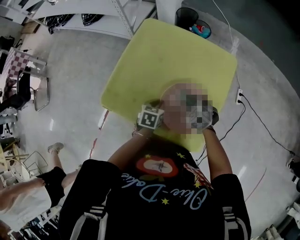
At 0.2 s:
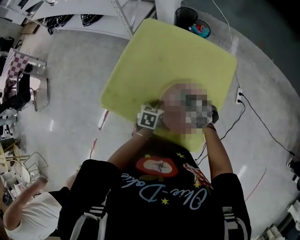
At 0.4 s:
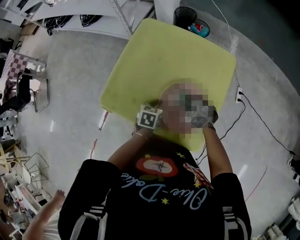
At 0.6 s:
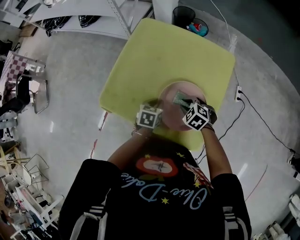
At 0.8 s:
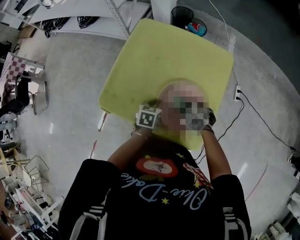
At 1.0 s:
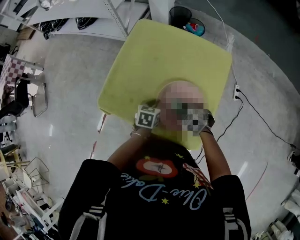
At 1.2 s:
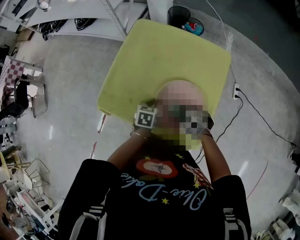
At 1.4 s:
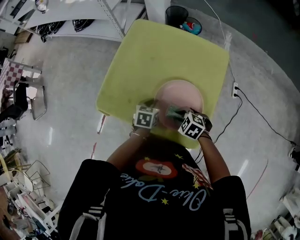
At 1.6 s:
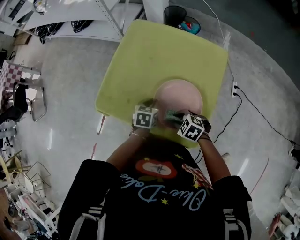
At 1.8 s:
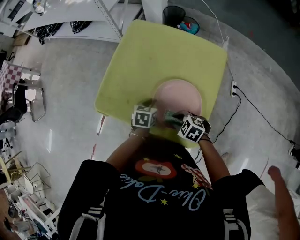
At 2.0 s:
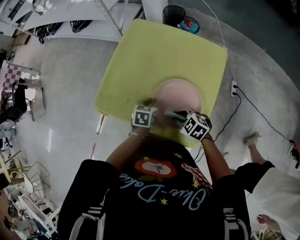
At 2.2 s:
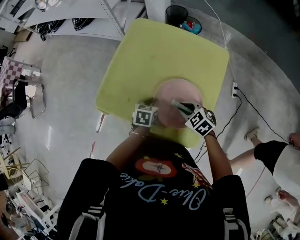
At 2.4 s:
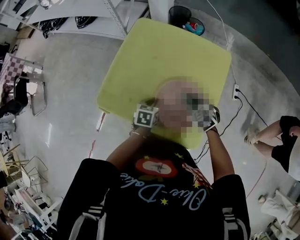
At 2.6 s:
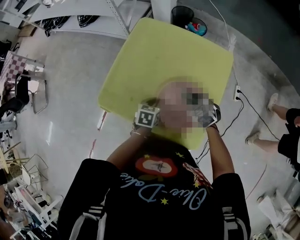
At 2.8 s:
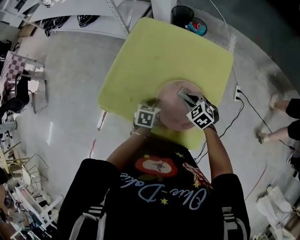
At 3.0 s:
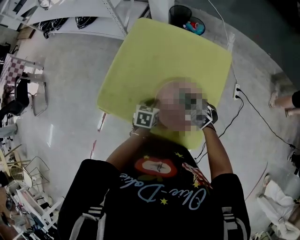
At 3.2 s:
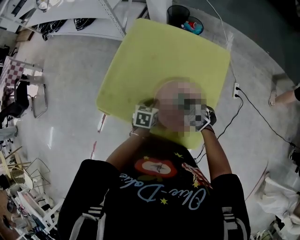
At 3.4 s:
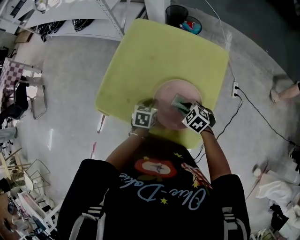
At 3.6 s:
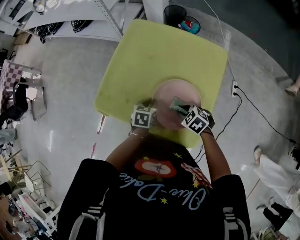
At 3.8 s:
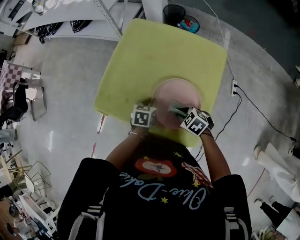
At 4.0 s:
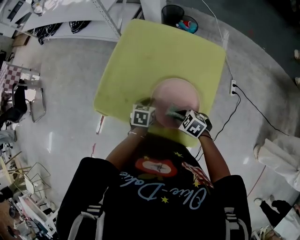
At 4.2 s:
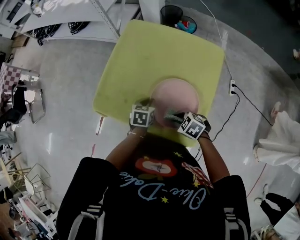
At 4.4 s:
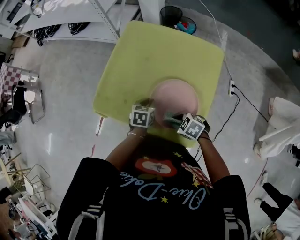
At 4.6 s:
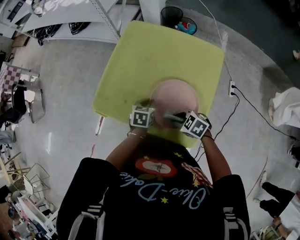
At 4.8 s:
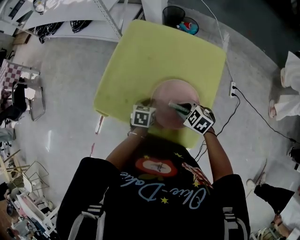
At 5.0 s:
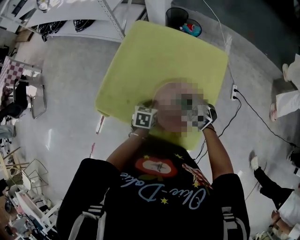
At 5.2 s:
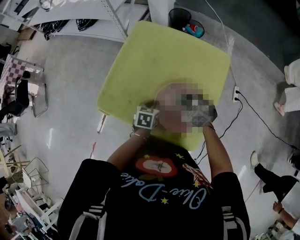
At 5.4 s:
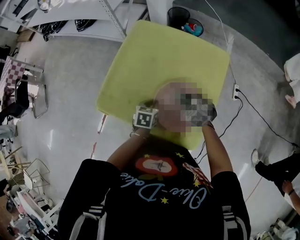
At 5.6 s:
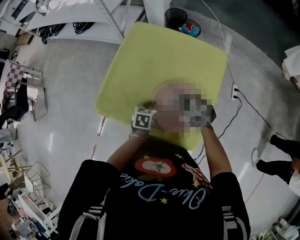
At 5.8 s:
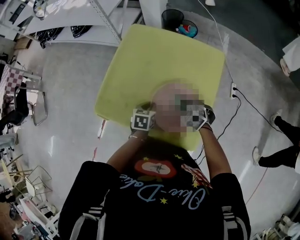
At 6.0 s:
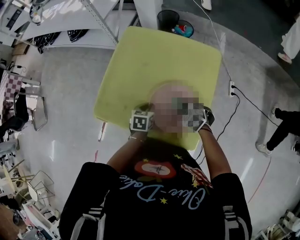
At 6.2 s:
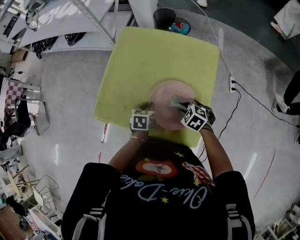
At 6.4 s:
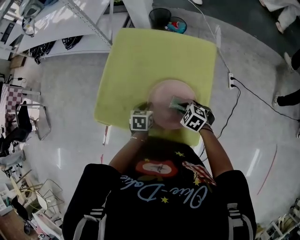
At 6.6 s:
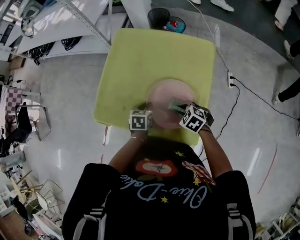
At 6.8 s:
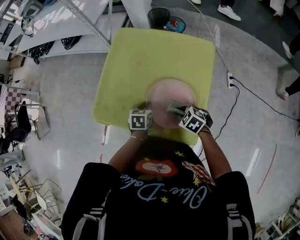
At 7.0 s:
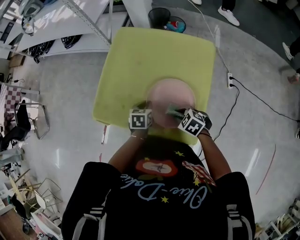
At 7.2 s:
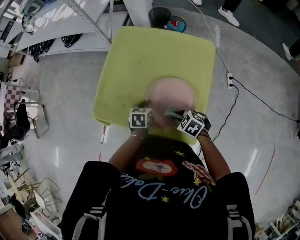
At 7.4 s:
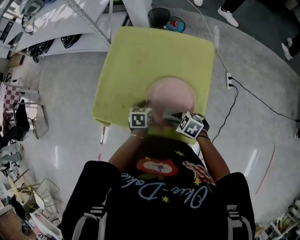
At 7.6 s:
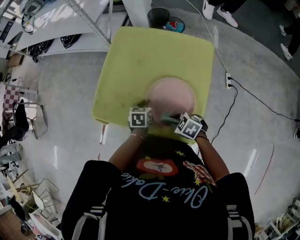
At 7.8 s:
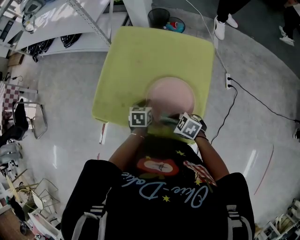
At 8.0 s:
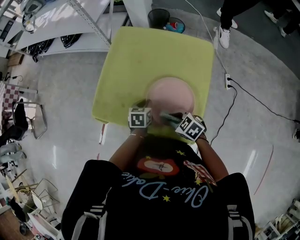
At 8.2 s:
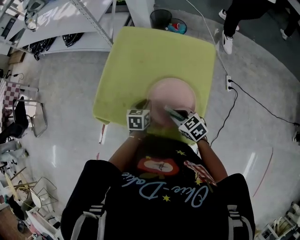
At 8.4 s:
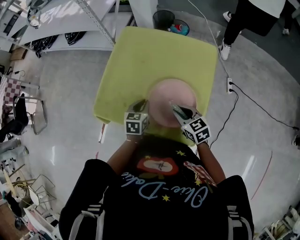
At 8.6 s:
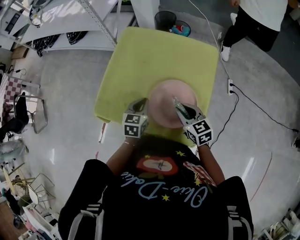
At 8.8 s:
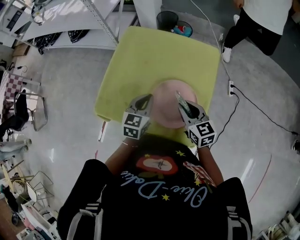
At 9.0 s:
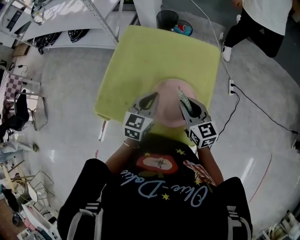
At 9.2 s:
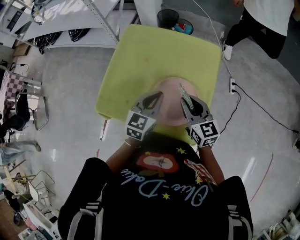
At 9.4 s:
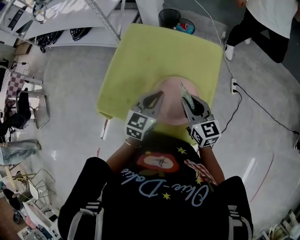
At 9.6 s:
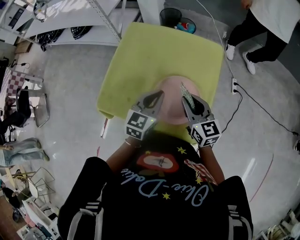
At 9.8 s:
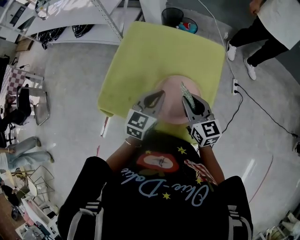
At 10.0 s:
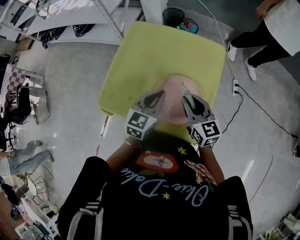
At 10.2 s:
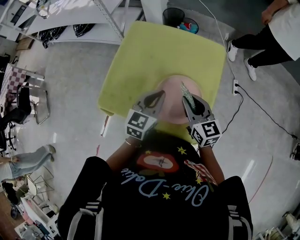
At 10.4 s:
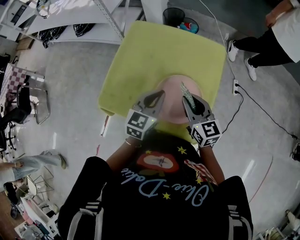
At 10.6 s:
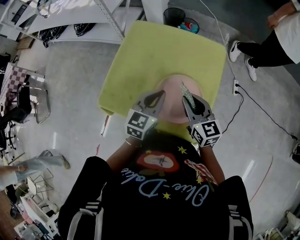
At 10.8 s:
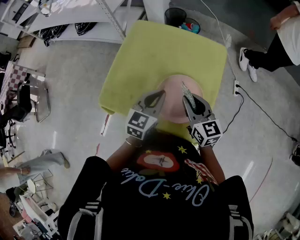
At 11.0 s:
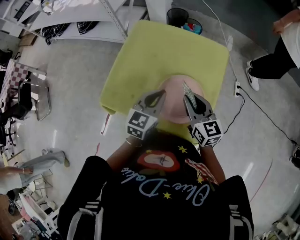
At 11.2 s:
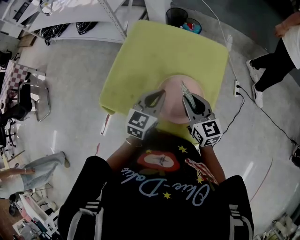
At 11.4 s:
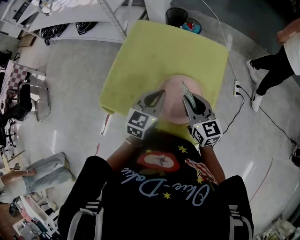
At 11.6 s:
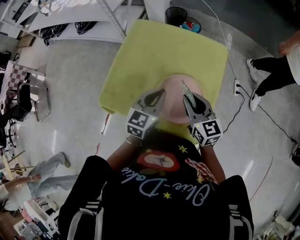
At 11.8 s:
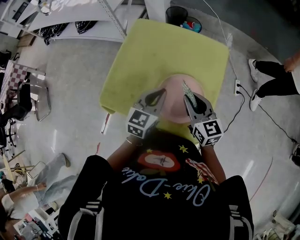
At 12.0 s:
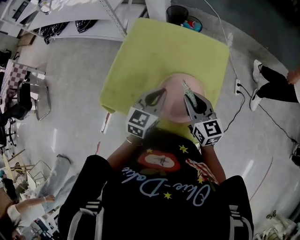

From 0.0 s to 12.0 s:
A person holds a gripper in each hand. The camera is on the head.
From 0.0 s to 1.6 s: The right gripper is displaced backward by about 10 cm, and turns by some 20 degrees.
From 1.6 s to 3.0 s: The right gripper moves forward and to the right, approximately 10 cm.
From 3.0 s to 4.4 s: The right gripper moves backward and to the left, approximately 10 cm, and rotates roughly 20 degrees.
From 4.4 s to 6.0 s: The right gripper goes about 10 cm forward and to the right.
From 6.0 s to 7.6 s: The right gripper heads backward and to the left, covering roughly 10 cm.
From 7.6 s to 9.0 s: Both grippers travel together upward, about 15 cm. The left gripper rotates roughly 30 degrees. The right gripper angles its fingers upward, by roughly 40 degrees.
From 9.0 s to 10.4 s: There are only small adjustments of the grippers.
From 10.4 s to 12.0 s: Both grippers stay put.

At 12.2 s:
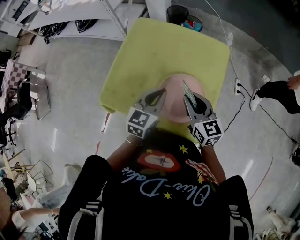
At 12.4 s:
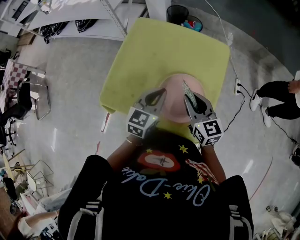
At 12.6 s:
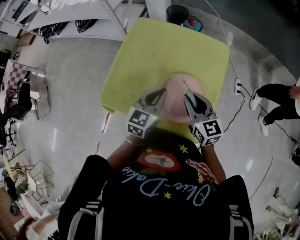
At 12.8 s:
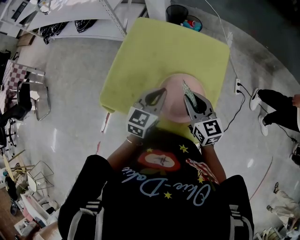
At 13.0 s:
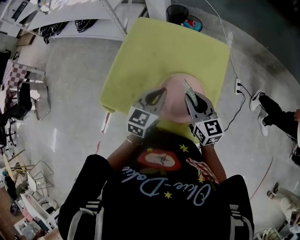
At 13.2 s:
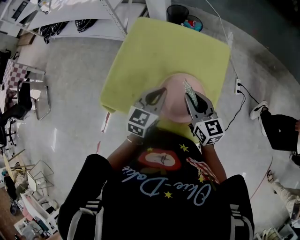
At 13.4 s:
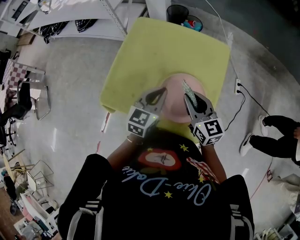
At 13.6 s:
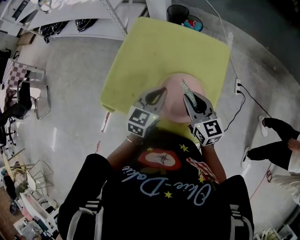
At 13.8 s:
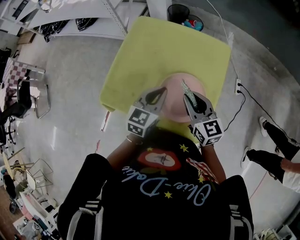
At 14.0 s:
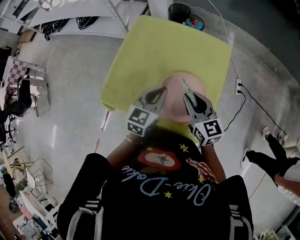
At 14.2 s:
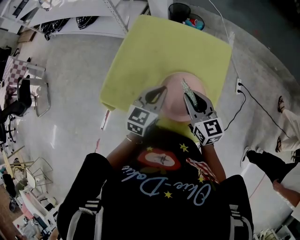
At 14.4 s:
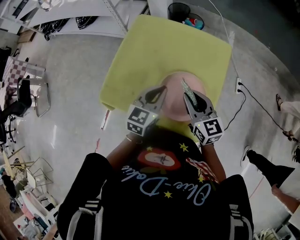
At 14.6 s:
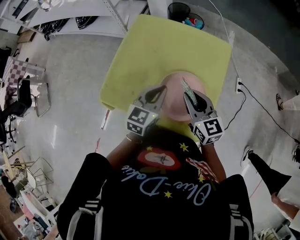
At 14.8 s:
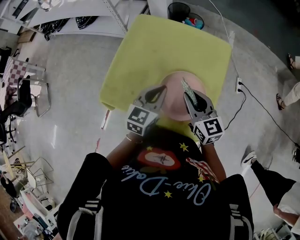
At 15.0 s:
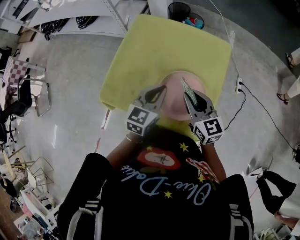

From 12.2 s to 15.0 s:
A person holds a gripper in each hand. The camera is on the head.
From 12.2 s to 15.0 s: Both grippers stay put.

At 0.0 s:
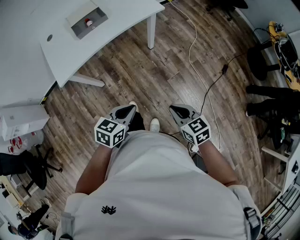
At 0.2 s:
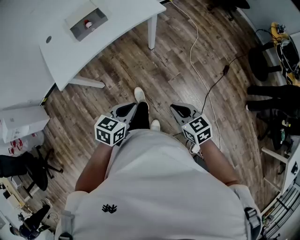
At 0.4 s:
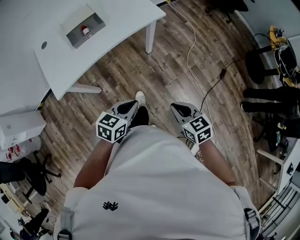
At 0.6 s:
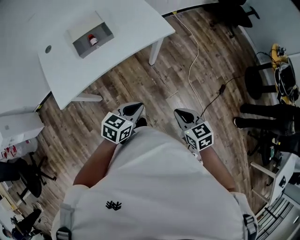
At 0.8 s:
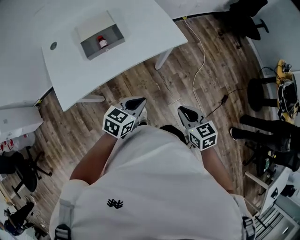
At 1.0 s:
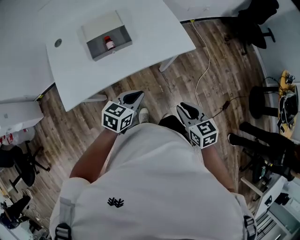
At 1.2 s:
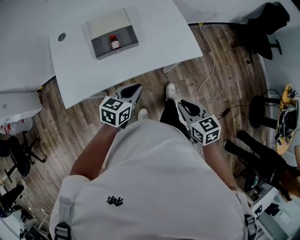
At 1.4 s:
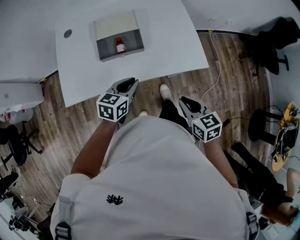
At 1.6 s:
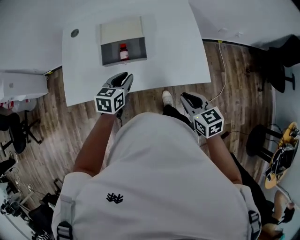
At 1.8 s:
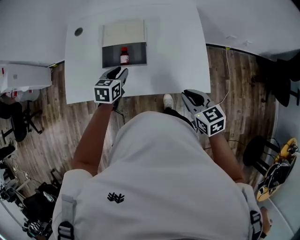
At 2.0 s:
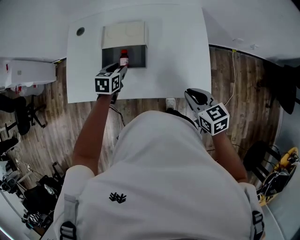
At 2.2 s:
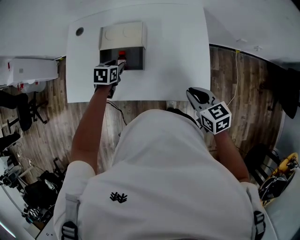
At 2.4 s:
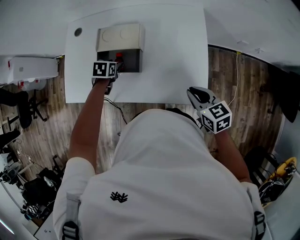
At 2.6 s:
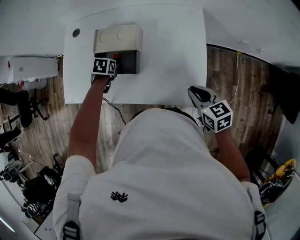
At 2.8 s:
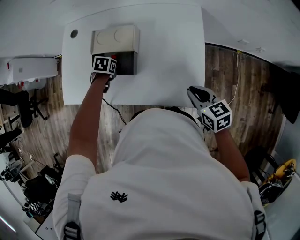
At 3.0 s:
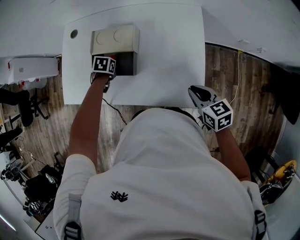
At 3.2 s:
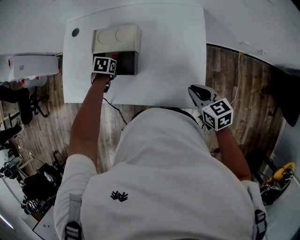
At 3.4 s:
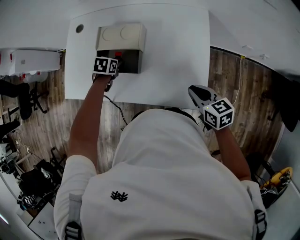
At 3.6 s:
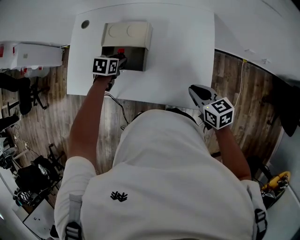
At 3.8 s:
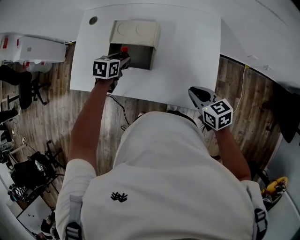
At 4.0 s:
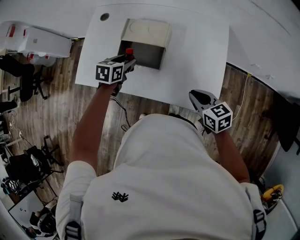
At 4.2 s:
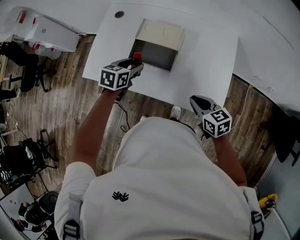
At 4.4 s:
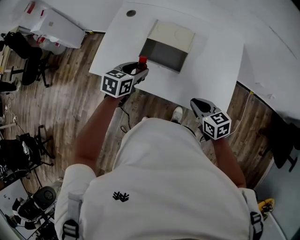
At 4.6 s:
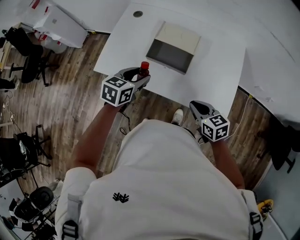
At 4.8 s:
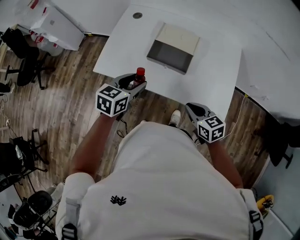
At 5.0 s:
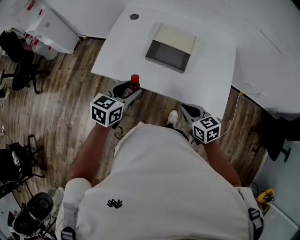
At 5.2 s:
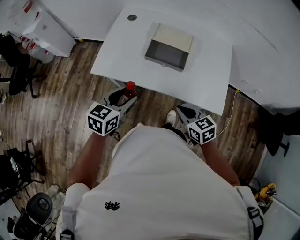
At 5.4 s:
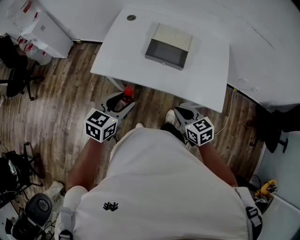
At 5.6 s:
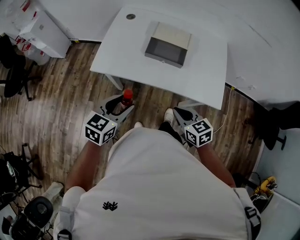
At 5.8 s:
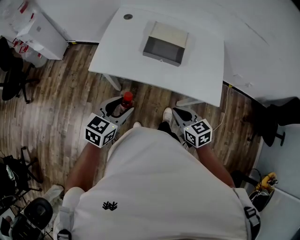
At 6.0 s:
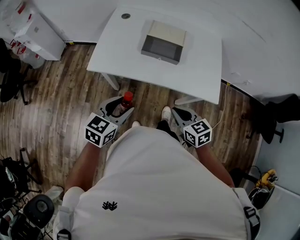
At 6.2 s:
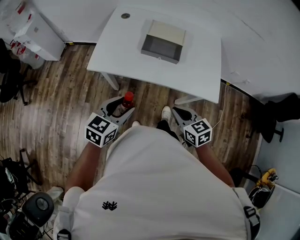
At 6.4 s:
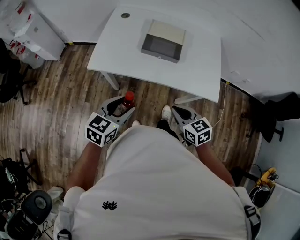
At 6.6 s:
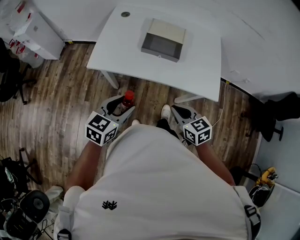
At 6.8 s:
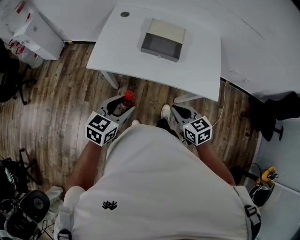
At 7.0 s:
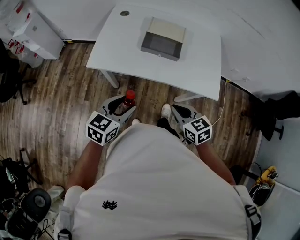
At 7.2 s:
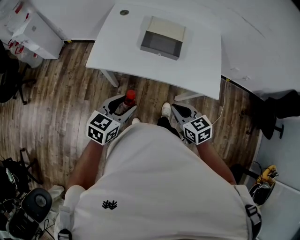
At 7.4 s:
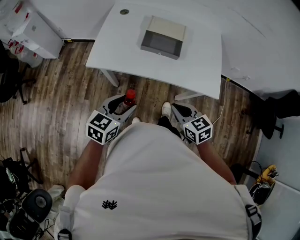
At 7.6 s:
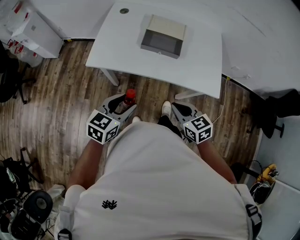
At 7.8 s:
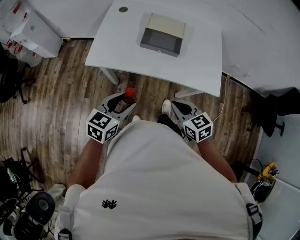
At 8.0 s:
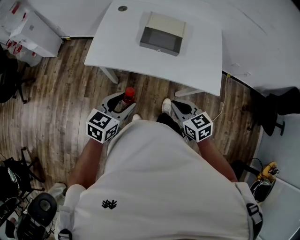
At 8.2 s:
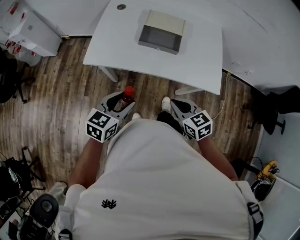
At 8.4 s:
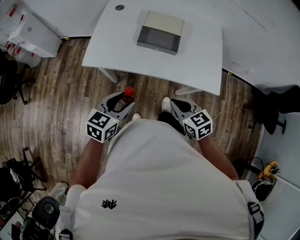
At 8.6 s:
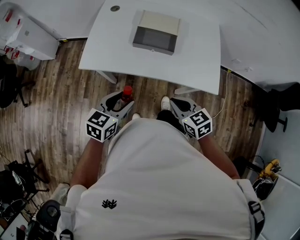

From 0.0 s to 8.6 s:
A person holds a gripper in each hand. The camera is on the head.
From 0.0 s to 1.4 s: The right gripper changes place by roughly 40 cm. The left gripper shifts by some 40 cm, and turns by about 30 degrees.
From 1.4 s to 2.8 s: The left gripper shifts by roughly 25 cm, angles its fingers downward, by some 50 degrees, and opens up, while the right gripper ends up about 25 cm from where it was, and swivels about 20 degrees.
From 2.8 s to 4.4 s: The left gripper shifts roughly 15 cm upward, and tilts its fingers some 40 degrees upward; the right gripper shifts by approximately 15 cm.
From 4.4 s to 5.8 s: The left gripper moves backward and to the left, roughly 25 cm, while the right gripper travels to the left and backward by some 20 cm.
From 5.8 s to 8.6 s: There are only small adjustments of the grippers.
